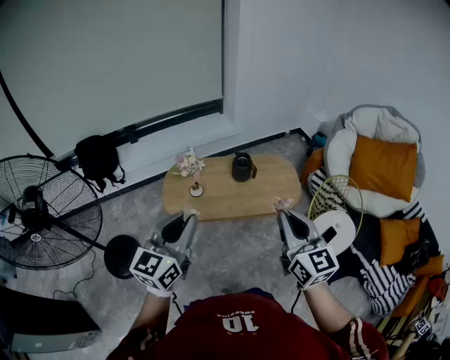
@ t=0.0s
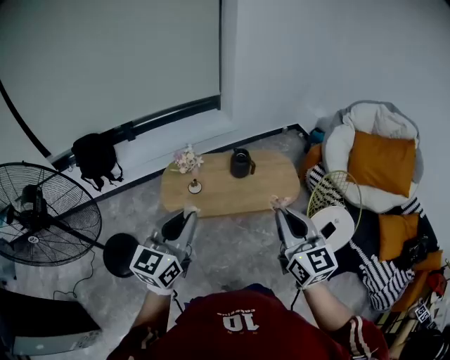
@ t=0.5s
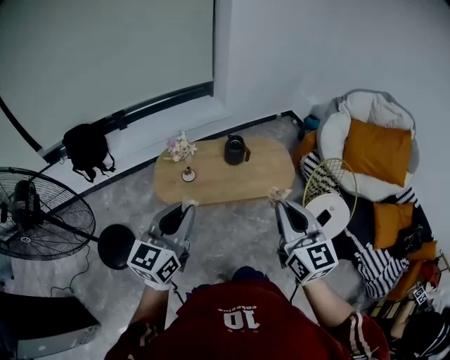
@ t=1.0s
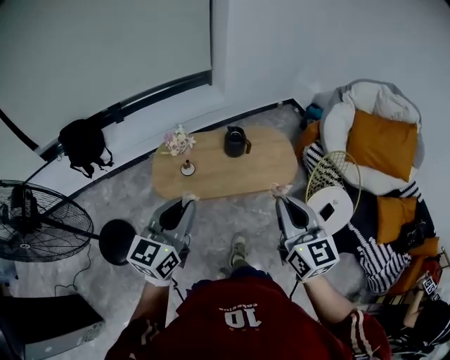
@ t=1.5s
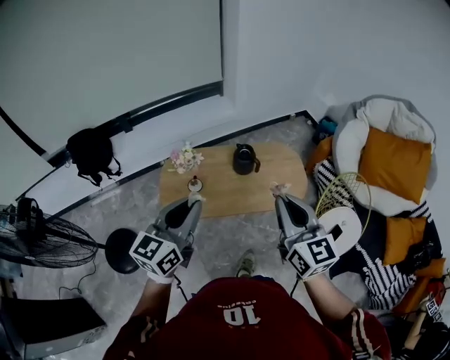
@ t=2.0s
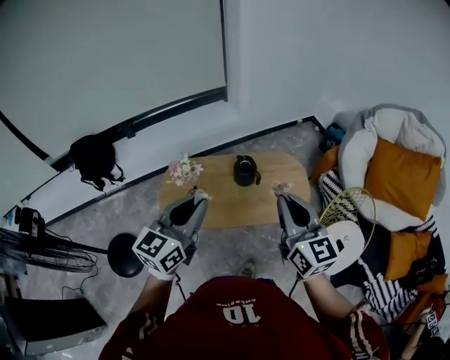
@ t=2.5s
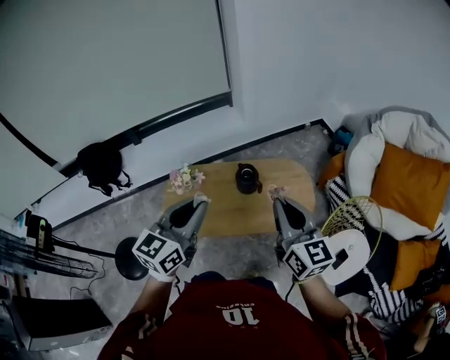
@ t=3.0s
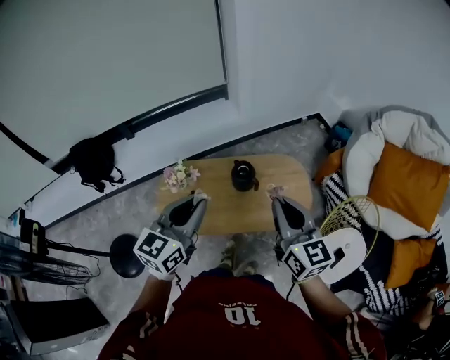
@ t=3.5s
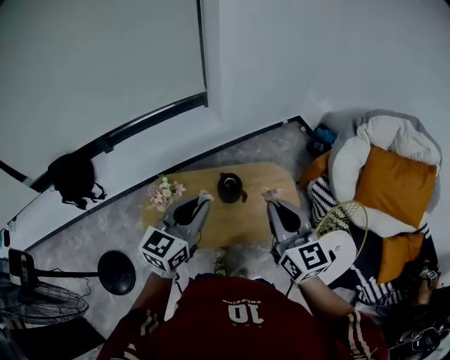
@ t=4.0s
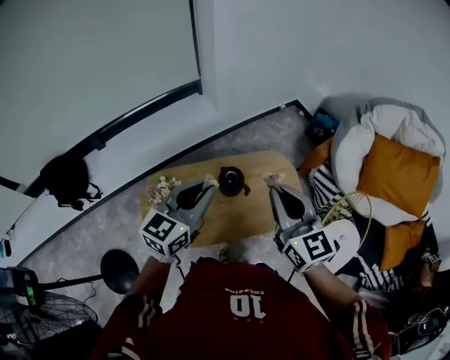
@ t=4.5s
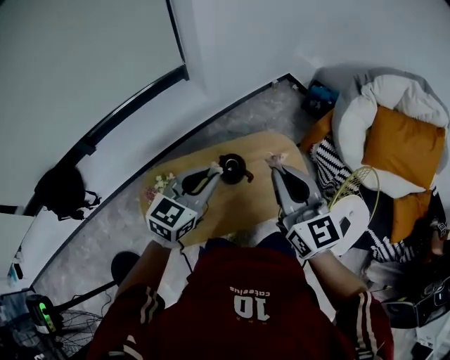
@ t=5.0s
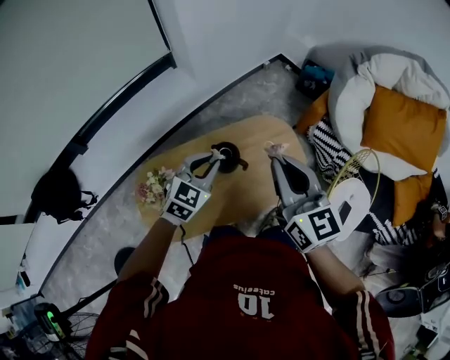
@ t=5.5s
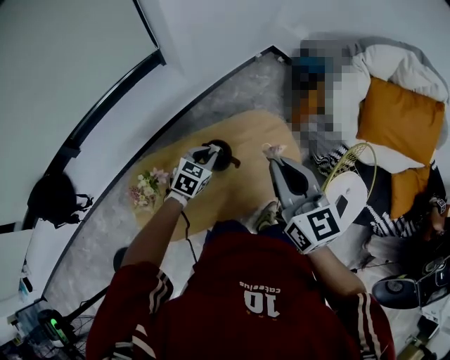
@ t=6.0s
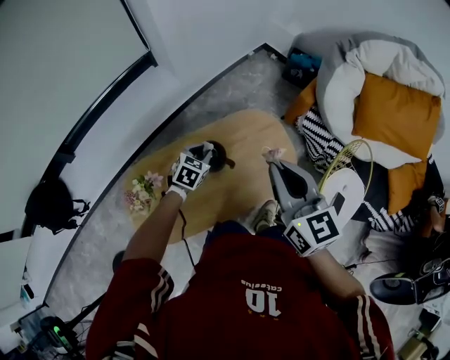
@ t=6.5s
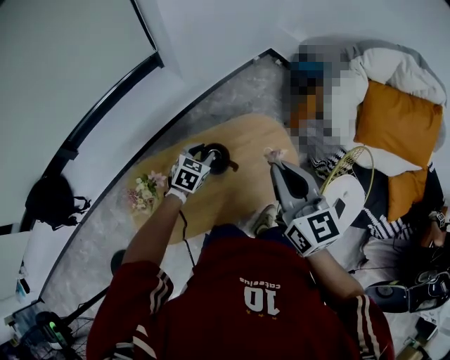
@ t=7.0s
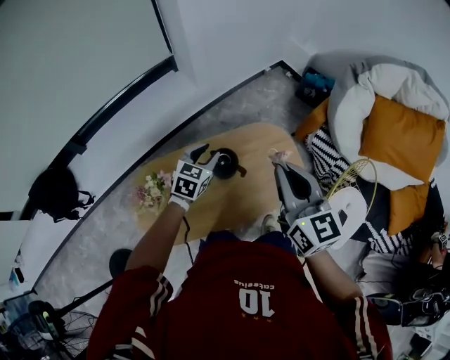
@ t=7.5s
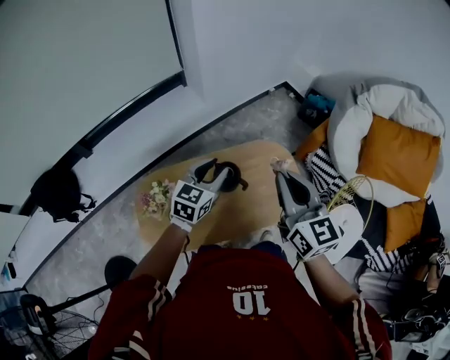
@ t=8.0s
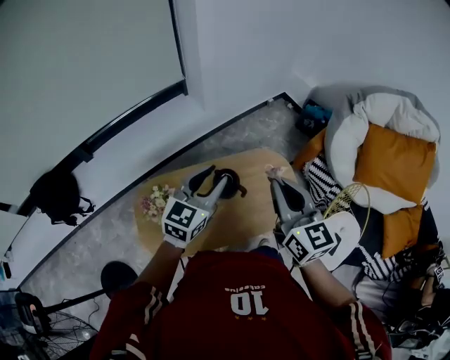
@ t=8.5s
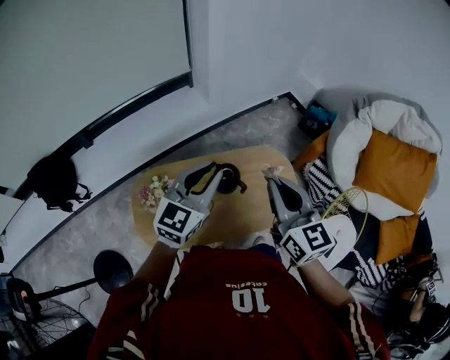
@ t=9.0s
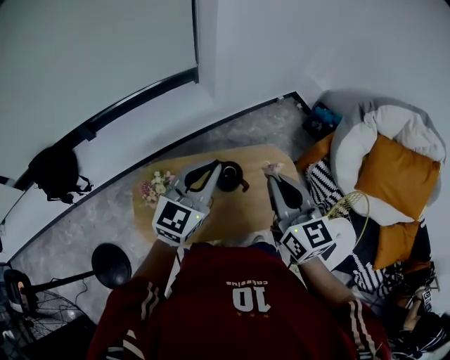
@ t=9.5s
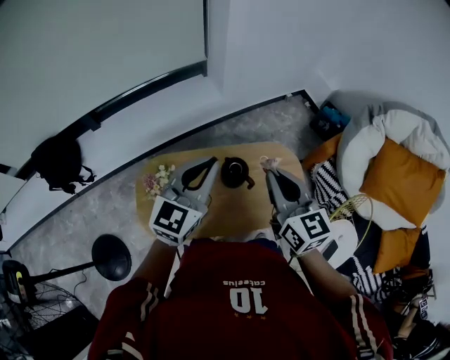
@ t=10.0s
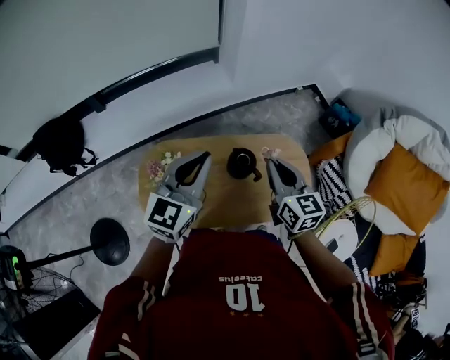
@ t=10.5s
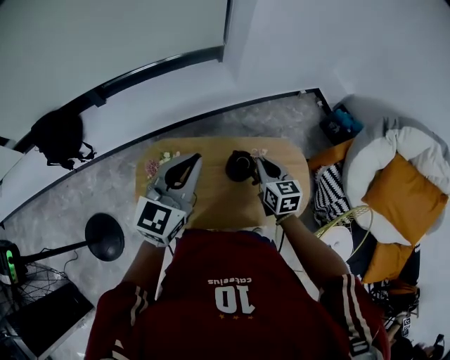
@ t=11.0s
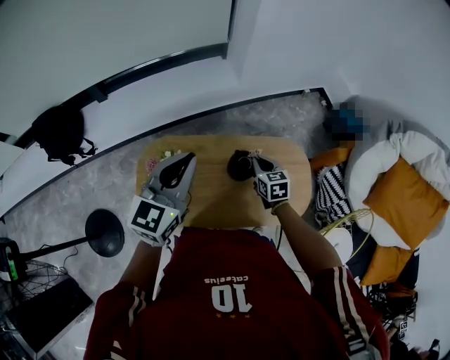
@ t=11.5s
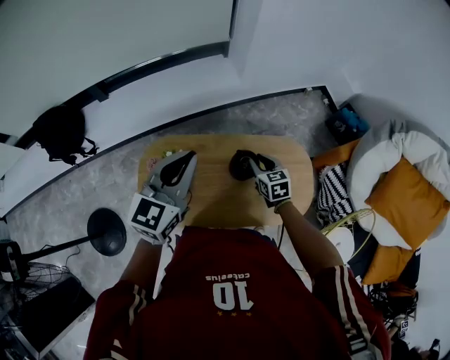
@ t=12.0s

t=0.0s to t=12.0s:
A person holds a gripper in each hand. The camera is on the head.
t=0.0s to t=2.0s: The grippers both shift forward by roughly 15 cm.
t=2.0s to t=4.0s: Both grippers move forward, about 25 cm.
t=4.0s to t=6.0s: The right gripper moves forward and downward, approximately 15 cm. The left gripper goes about 35 cm downward and forward, and points its fingers some 30 degrees further downward.
t=6.0s to t=8.0s: The left gripper heads upward, covering roughly 15 cm, and turns by roughly 20 degrees.
t=8.0s to t=10.0s: The right gripper moves to the left, some 5 cm; the left gripper goes approximately 15 cm upward, to the left and backward, swivels roughly 20 degrees, and closes.
t=10.0s to t=12.0s: The left gripper moves to the left, roughly 10 cm, while the right gripper is displaced downward by approximately 30 cm, tips its fingers downward by about 30 degrees, and opens up.

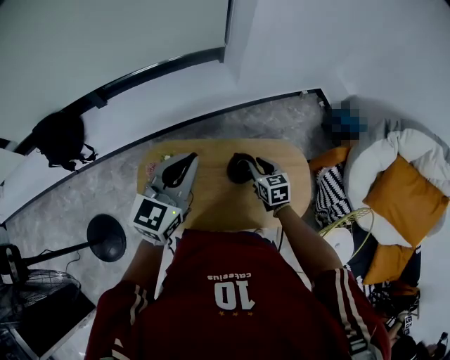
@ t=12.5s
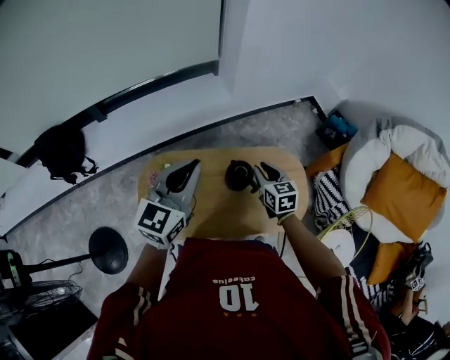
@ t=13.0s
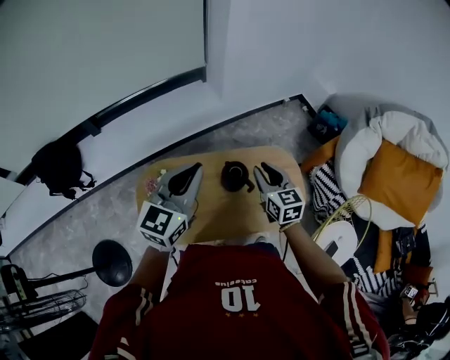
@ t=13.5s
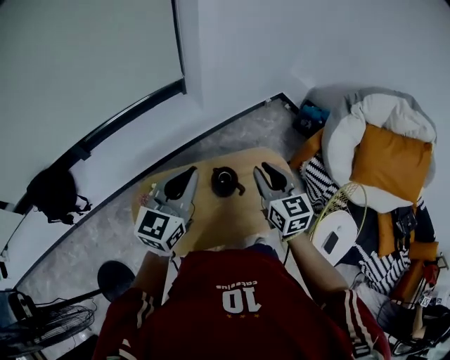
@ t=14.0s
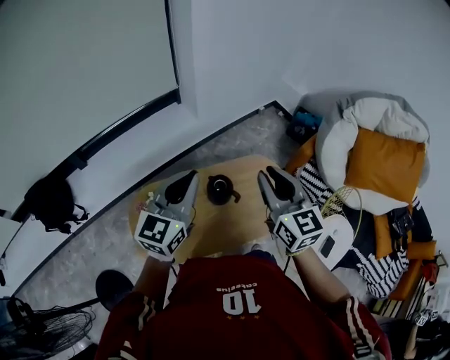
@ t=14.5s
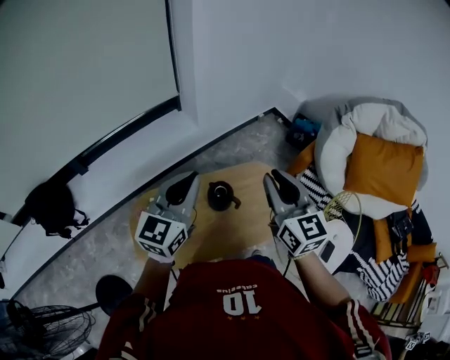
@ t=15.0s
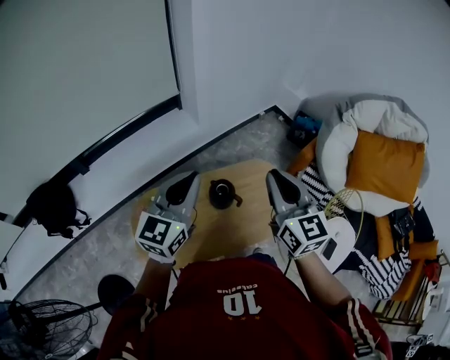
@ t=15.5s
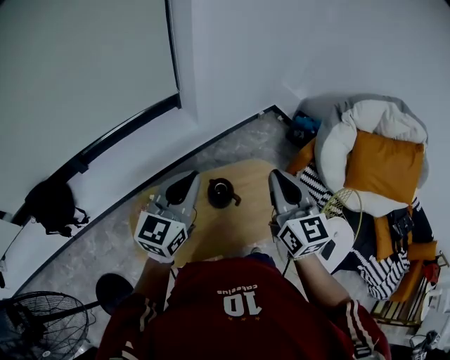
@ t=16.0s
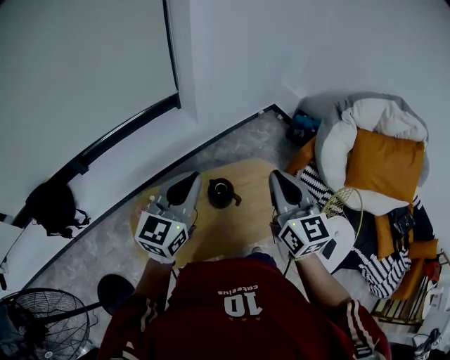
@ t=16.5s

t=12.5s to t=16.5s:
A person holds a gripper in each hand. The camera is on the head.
t=12.5s to t=14.5s: The left gripper heads to the right and upward, covering roughly 10 cm; the right gripper shifts about 30 cm upward, and angles its fingers upward, by approximately 30 degrees.
t=14.5s to t=16.5s: The grippers make only small movements.

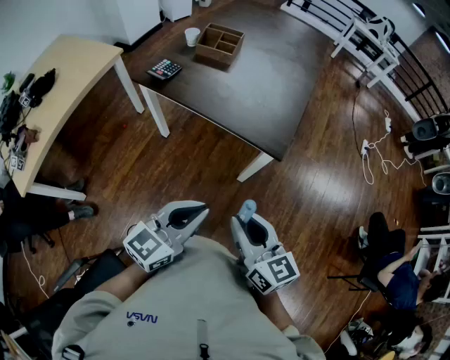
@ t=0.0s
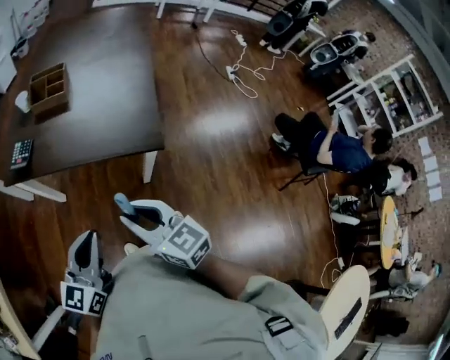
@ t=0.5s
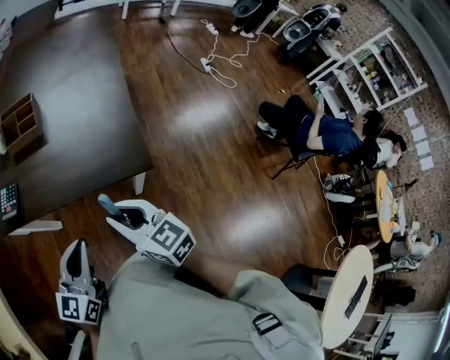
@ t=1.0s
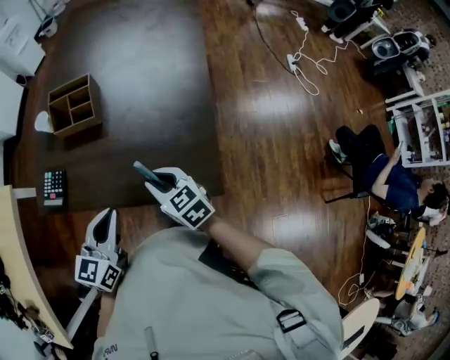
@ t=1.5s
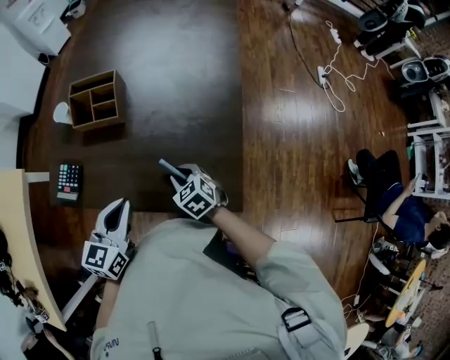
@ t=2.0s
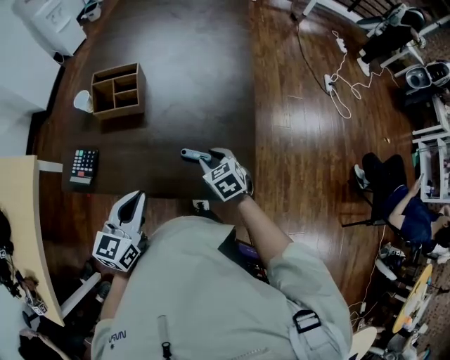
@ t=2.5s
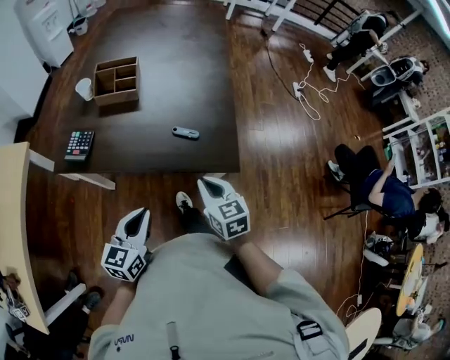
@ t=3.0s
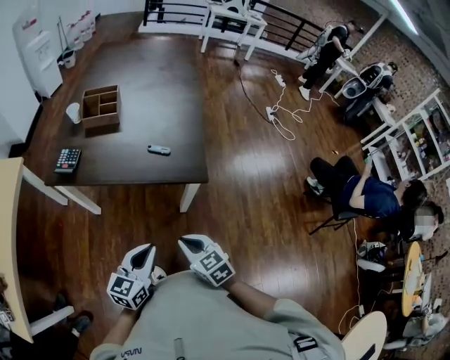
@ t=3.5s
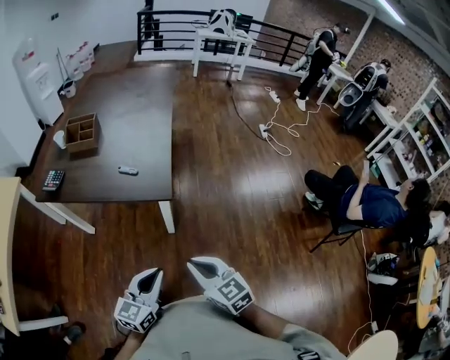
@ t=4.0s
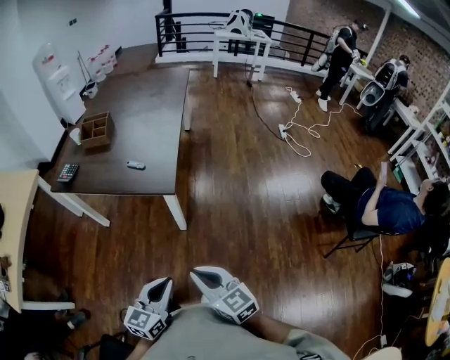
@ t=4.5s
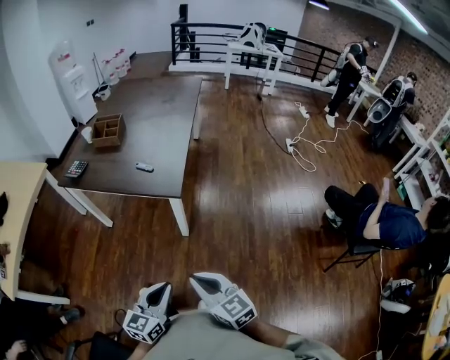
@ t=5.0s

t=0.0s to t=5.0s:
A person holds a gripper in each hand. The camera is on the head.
t=0.0s to t=2.5s: The left gripper is displaced forward by some 35 cm. Meanwhile the right gripper travels forward and downward by roughly 50 cm, and tips its fingers downward by about 40 degrees.
t=2.5s to t=5.0s: Both grippers are carried backward and to the right, some 50 cm. The right gripper angles its fingers upward, by roughly 30 degrees, and closes.

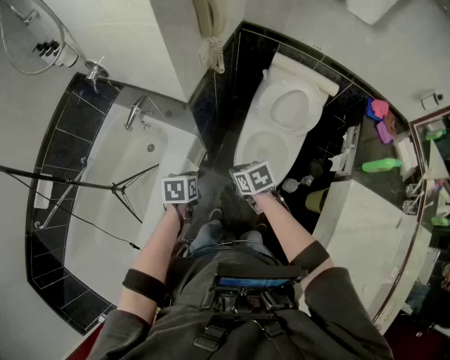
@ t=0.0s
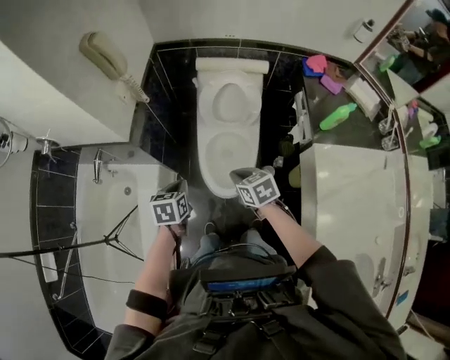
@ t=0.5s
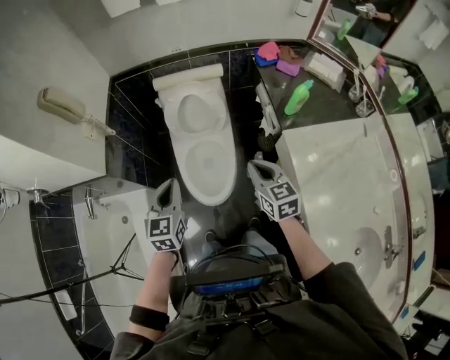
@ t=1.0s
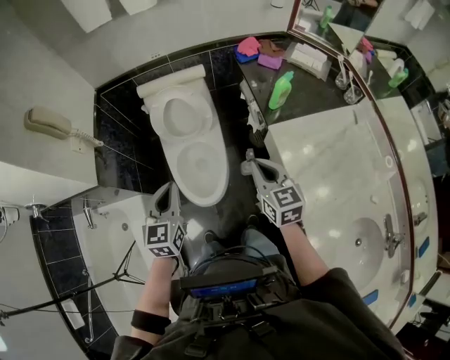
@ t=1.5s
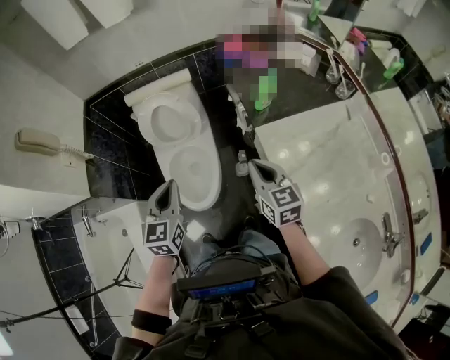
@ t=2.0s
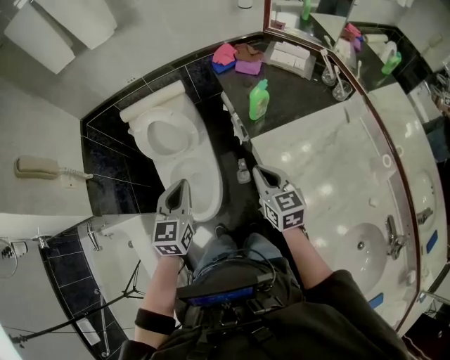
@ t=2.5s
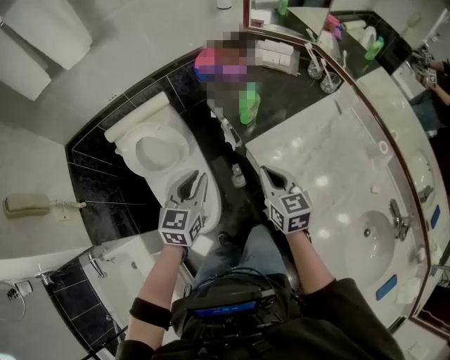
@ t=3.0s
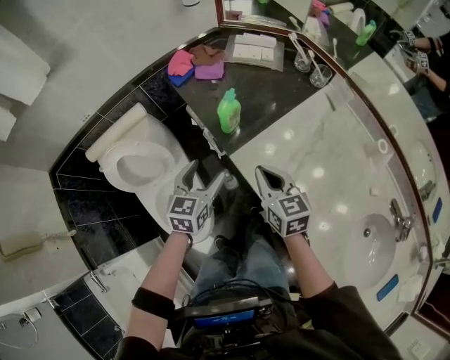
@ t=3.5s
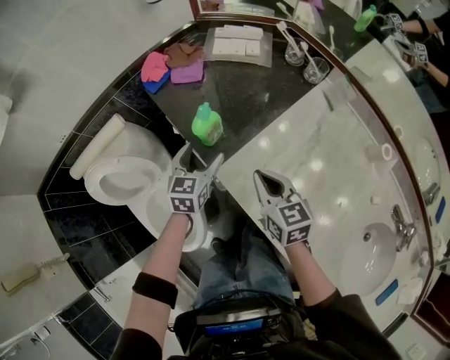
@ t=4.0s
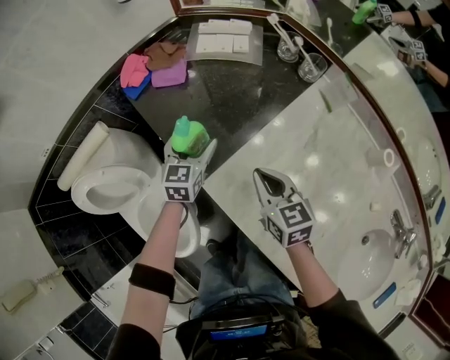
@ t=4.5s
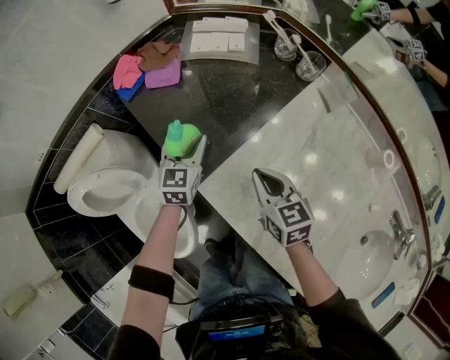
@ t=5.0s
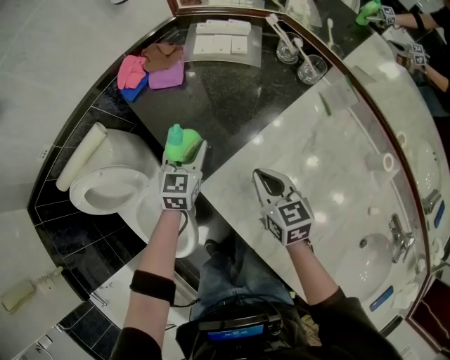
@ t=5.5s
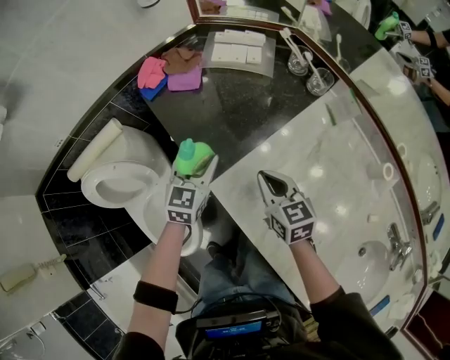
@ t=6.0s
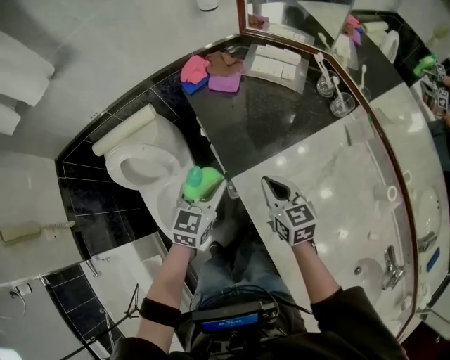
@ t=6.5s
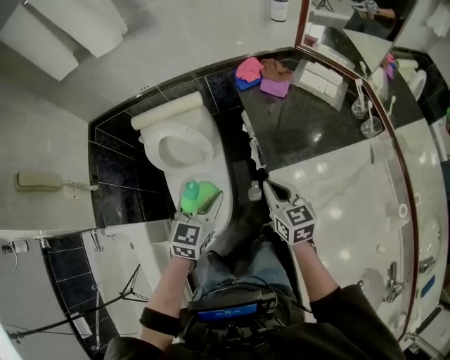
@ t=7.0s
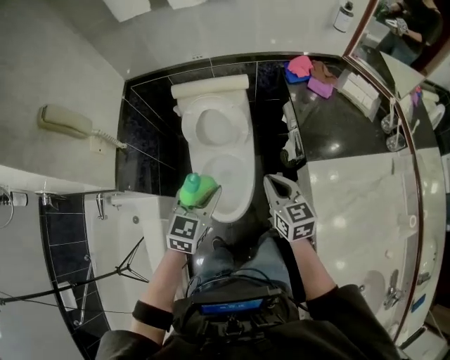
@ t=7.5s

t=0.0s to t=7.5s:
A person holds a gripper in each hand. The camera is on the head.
t=0.0s to t=2.0s: The left gripper moves some 40 cm, and tilts its fingers some 40 degrees upward. Meanwhile the right gripper changes place by some 50 cm, and points its fingers some 30 degrees further upward.
t=2.0s to t=4.0s: The right gripper ends up roughly 25 cm from where it was, and swivels about 20 degrees. Meanwhile the left gripper changes place by approximately 50 cm, turns by about 30 degrees, and opens.
t=4.0s to t=5.5s: The left gripper travels forward by about 5 cm, and closes up. The right gripper heads downward and to the right, covering roughly 10 cm.
t=5.5s to t=7.5s: The right gripper changes place by about 40 cm, and rotates some 30 degrees; the left gripper moves roughly 50 cm, and changes its angle by some 30 degrees.
